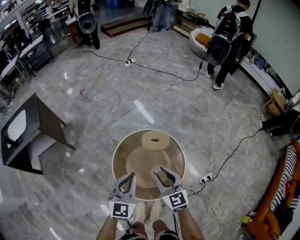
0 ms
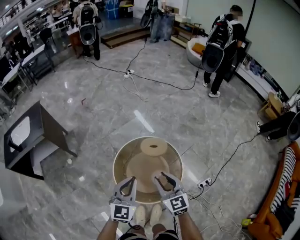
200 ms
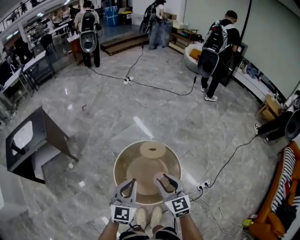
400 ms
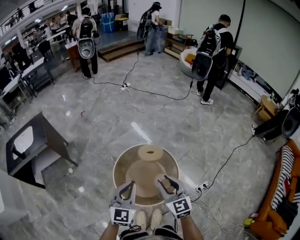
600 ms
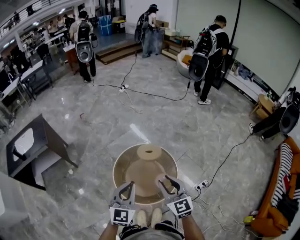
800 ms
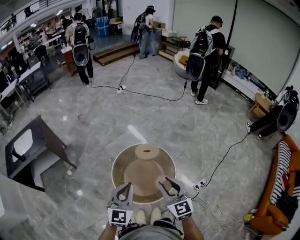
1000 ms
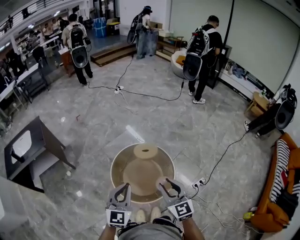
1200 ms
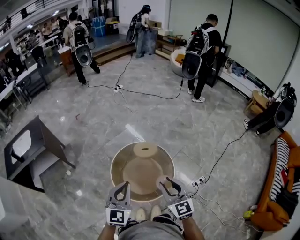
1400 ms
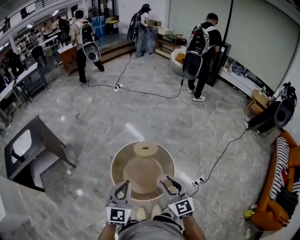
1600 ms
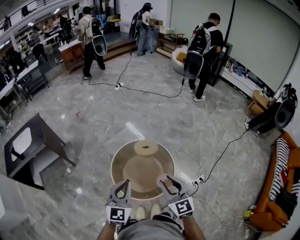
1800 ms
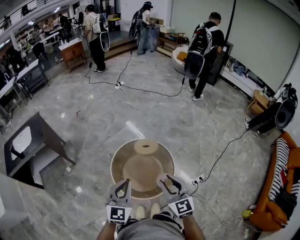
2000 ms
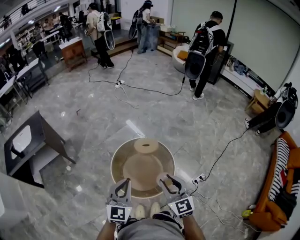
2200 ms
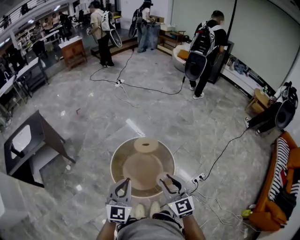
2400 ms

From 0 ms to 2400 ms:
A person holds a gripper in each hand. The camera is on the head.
From 0 ms to 1200 ms: Both grippers move backward and upward, roughly 20 cm.
From 1200 ms to 2400 ms: Both grippers stay about where they are.

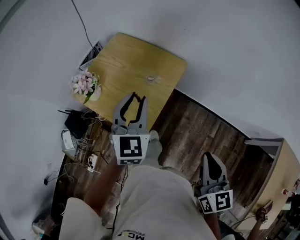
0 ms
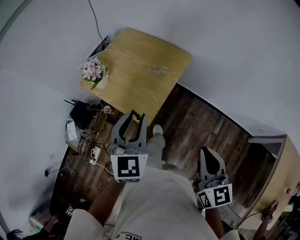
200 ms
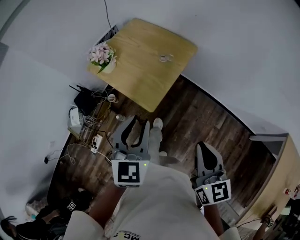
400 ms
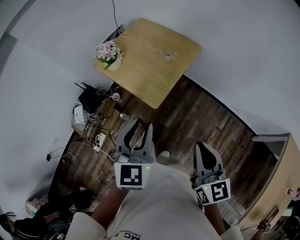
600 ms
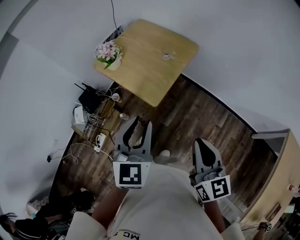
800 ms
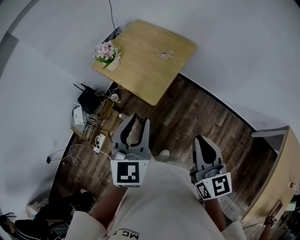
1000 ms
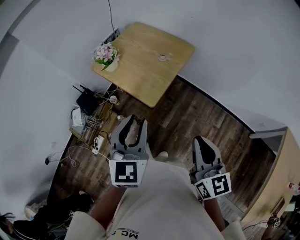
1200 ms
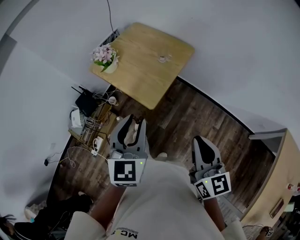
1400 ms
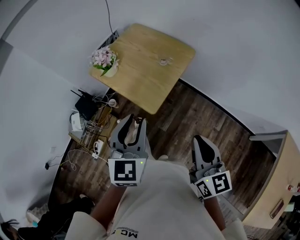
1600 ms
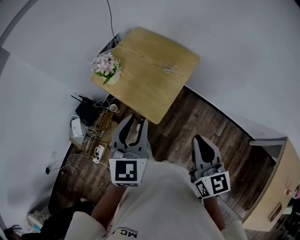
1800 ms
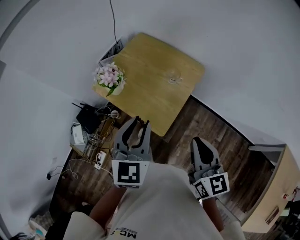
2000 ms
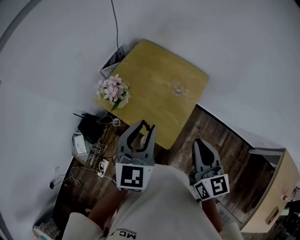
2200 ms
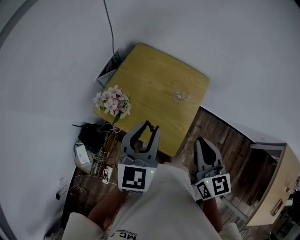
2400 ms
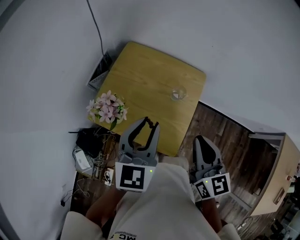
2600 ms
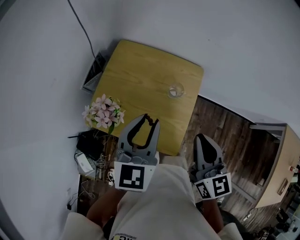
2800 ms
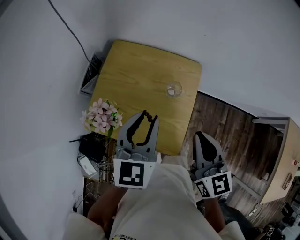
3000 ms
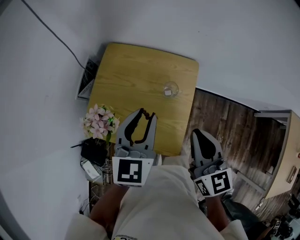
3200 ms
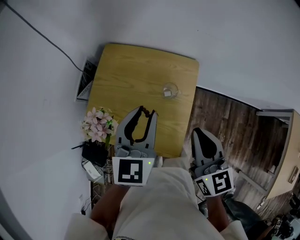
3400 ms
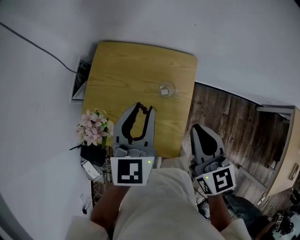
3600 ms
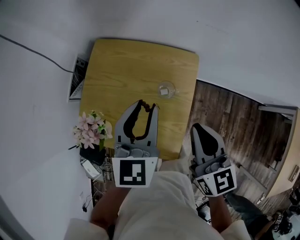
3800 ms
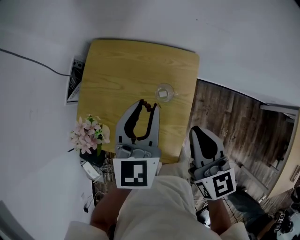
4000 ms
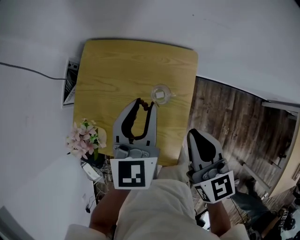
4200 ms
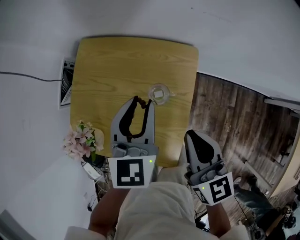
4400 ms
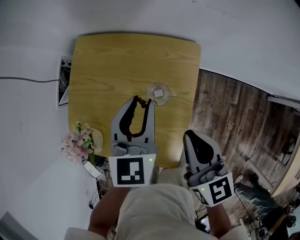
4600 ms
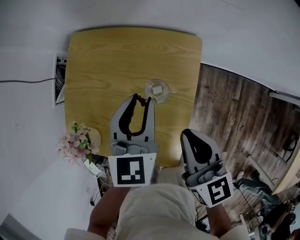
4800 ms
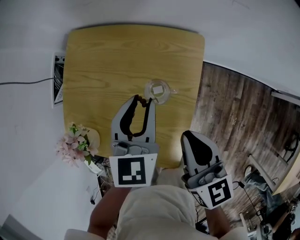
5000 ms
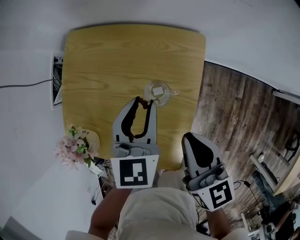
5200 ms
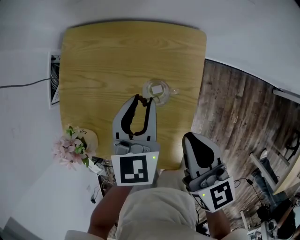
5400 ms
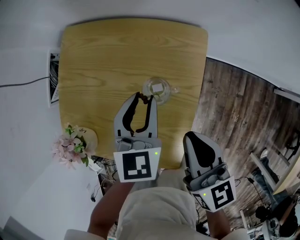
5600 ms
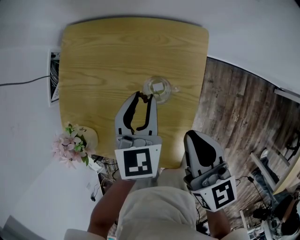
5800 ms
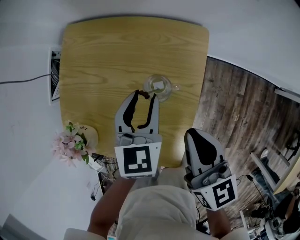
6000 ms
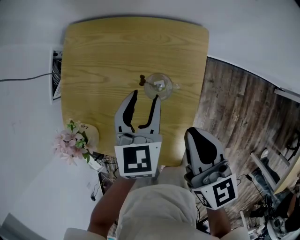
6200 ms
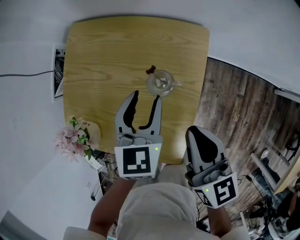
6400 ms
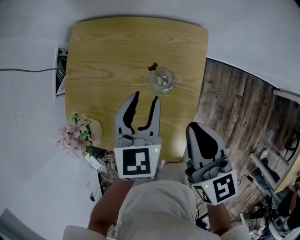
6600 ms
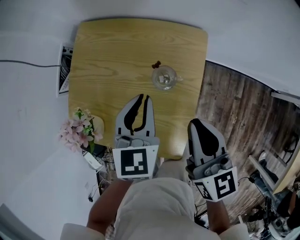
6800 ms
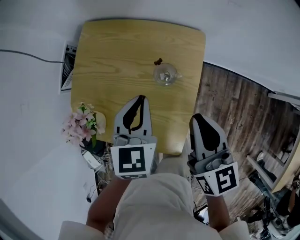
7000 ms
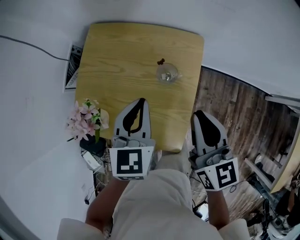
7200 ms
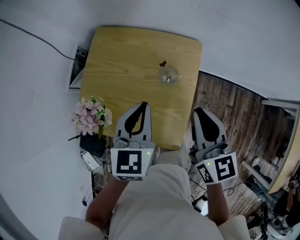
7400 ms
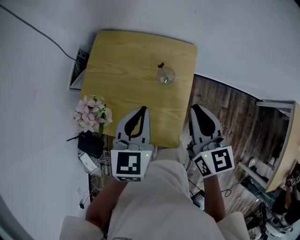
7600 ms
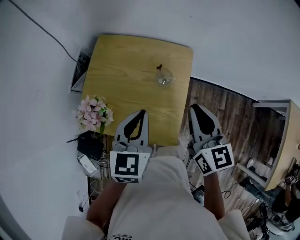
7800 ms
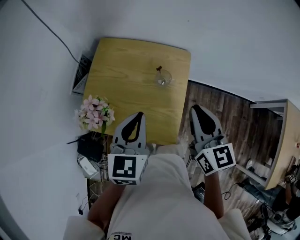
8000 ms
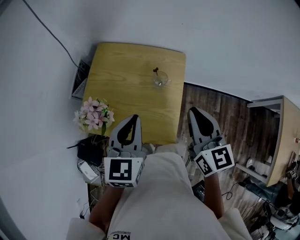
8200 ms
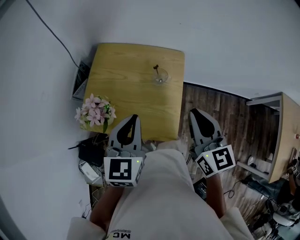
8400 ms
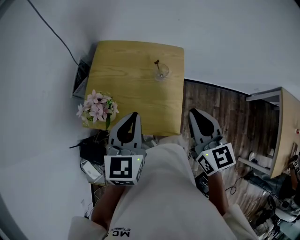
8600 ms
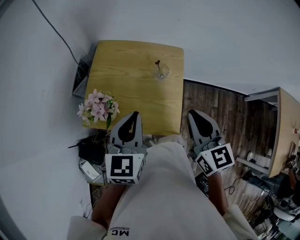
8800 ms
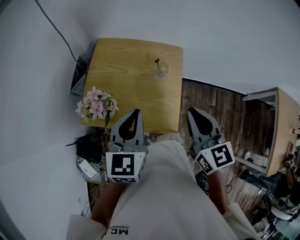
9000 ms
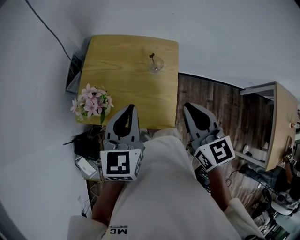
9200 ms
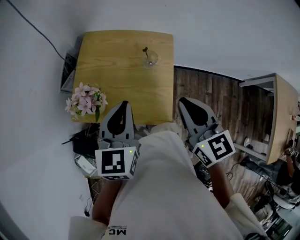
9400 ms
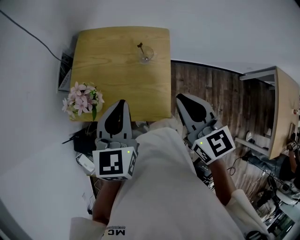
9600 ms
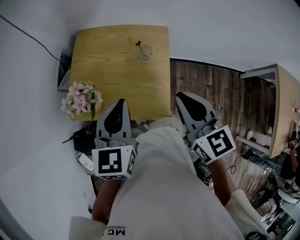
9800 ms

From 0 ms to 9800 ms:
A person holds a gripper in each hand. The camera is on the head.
From 0 ms to 1400 ms: The right gripper moves backward and to the left, roughly 15 cm, while the left gripper heads backward, covering roughly 25 cm.
From 1400 ms to 2800 ms: The left gripper moves forward, roughly 35 cm, and swivels roughly 20 degrees. Meanwhile the right gripper is displaced forward and to the left by about 40 cm.
From 2800 ms to 4200 ms: The right gripper shifts about 15 cm downward, forward and to the right. The left gripper travels forward, downward and to the right by approximately 20 cm.
From 4200 ms to 5600 ms: The left gripper moves downward, about 15 cm. The right gripper goes about 10 cm downward.
From 5600 ms to 7000 ms: The left gripper moves upward and backward, approximately 10 cm, and closes its fingers; the right gripper travels upward by approximately 5 cm.
From 7000 ms to 8400 ms: The grippers both shift upward and backward by about 20 cm.
From 8400 ms to 9800 ms: The grippers stay close to where they were, moving slightly.

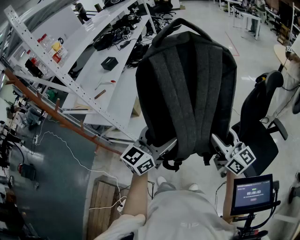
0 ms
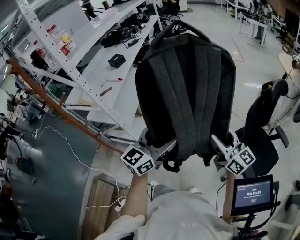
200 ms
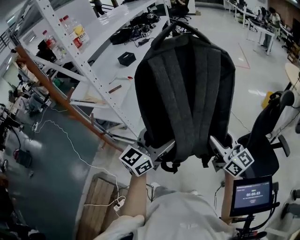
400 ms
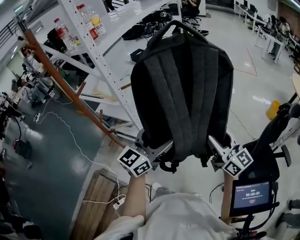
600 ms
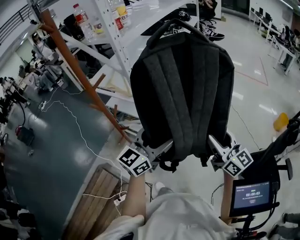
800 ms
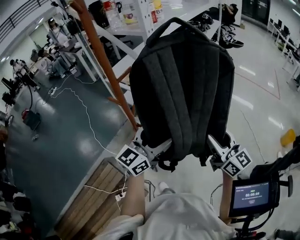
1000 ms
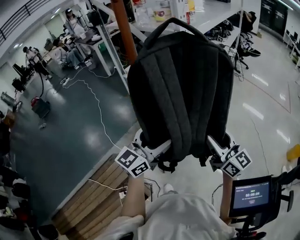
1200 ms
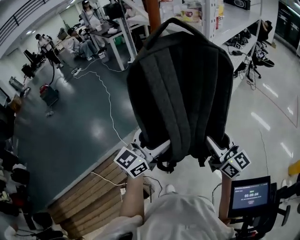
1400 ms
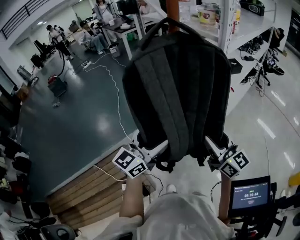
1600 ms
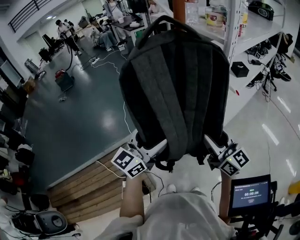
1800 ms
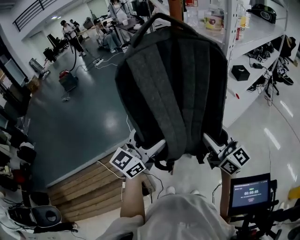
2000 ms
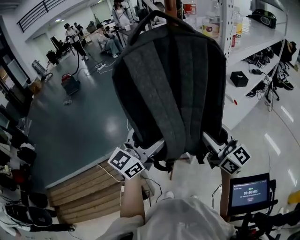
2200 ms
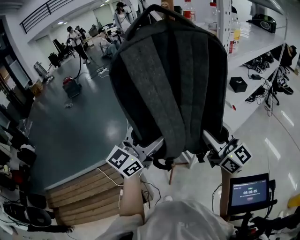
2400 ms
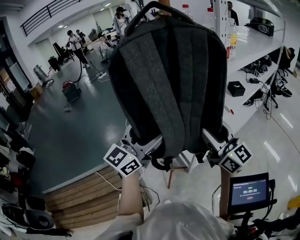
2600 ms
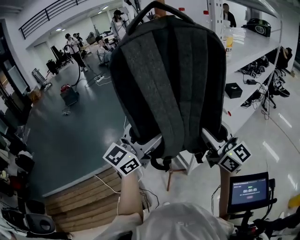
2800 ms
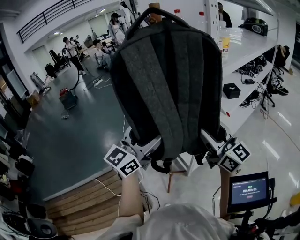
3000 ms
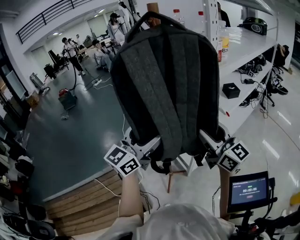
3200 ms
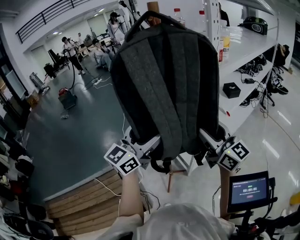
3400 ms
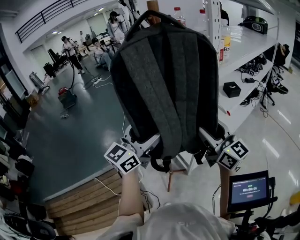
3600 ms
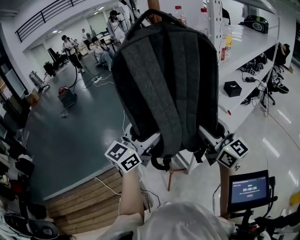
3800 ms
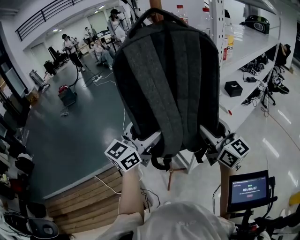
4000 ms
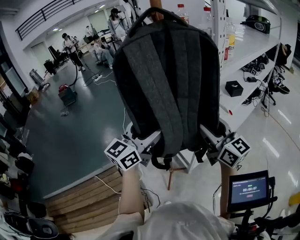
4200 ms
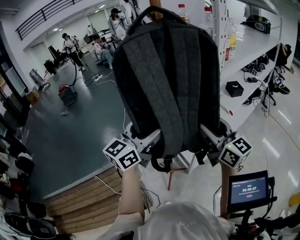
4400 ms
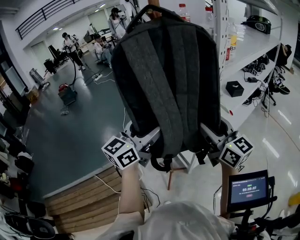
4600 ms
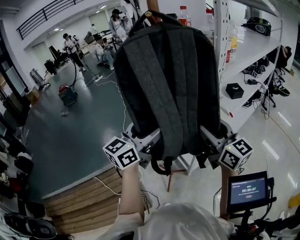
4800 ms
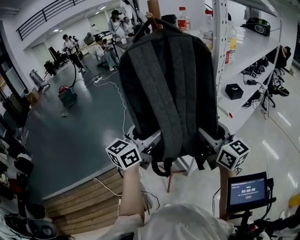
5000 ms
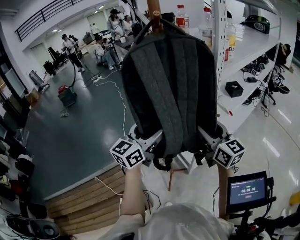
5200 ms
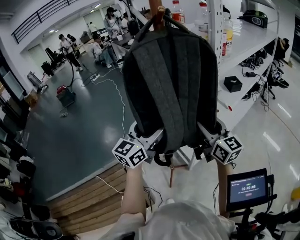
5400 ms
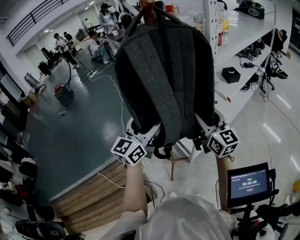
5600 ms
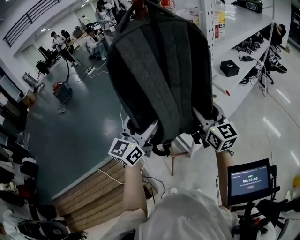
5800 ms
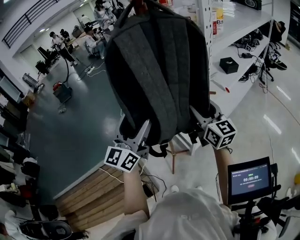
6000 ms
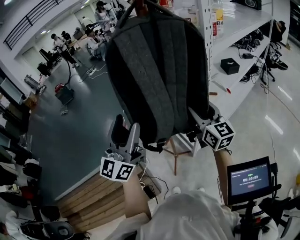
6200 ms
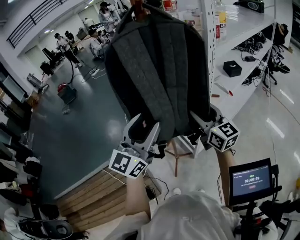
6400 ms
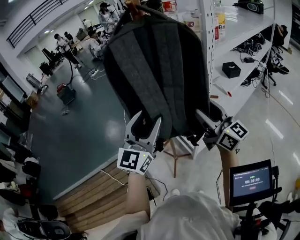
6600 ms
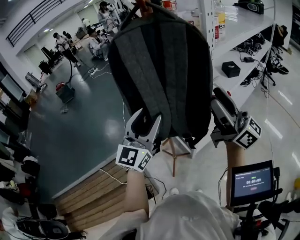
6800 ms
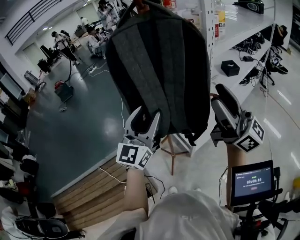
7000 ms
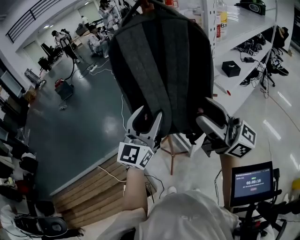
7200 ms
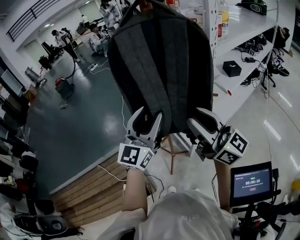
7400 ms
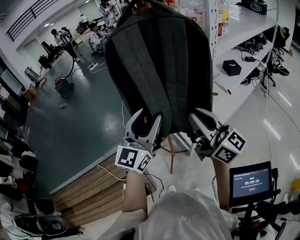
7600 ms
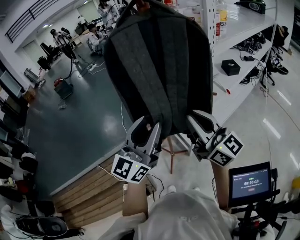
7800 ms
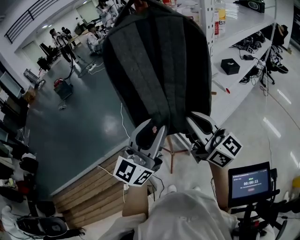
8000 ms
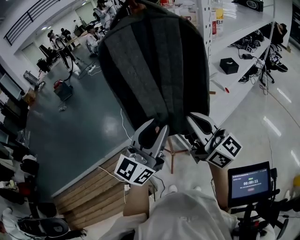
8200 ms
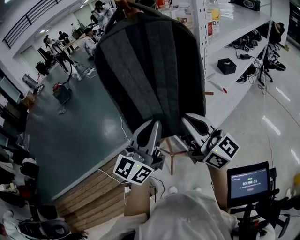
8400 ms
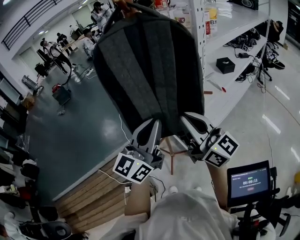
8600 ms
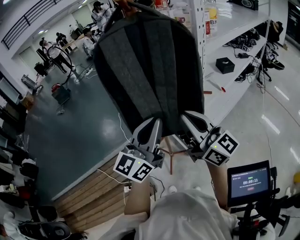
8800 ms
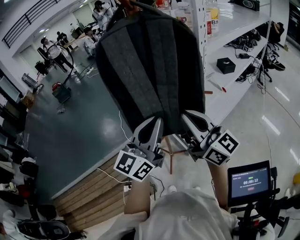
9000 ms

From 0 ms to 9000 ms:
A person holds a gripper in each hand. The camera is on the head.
From 0 ms to 1600 ms: The pair of grippers is taken some 60 cm. The right gripper turns by approximately 40 degrees. The left gripper rotates approximately 40 degrees.
From 1600 ms to 3000 ms: The left gripper moves upward, some 10 cm, while the right gripper shifts approximately 10 cm upward and forward.
From 3000 ms to 4400 ms: The grippers make only small movements.
From 4400 ms to 6000 ms: The right gripper travels downward by about 5 cm.
From 6000 ms to 7600 ms: The right gripper heads backward and upward, covering some 10 cm, rotates some 30 degrees, and closes its fingers; the left gripper closes.
From 7600 ms to 9000 ms: The left gripper closes its fingers.

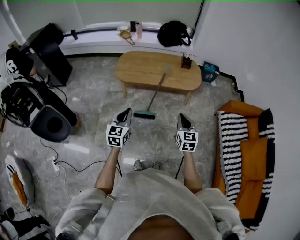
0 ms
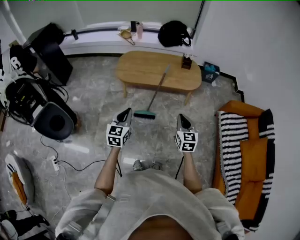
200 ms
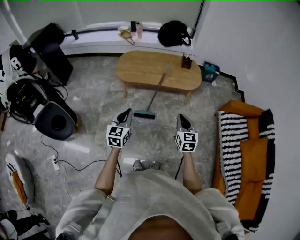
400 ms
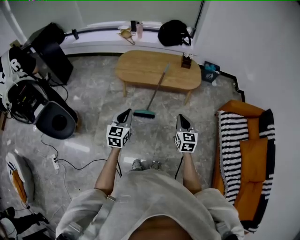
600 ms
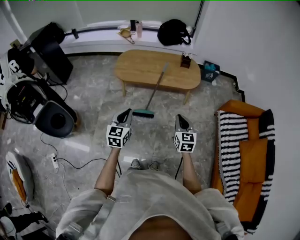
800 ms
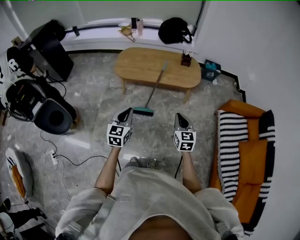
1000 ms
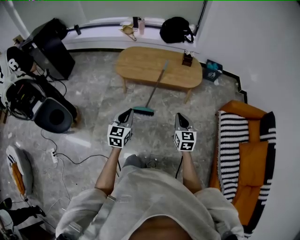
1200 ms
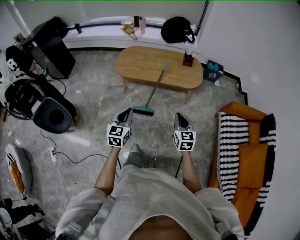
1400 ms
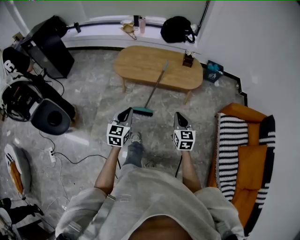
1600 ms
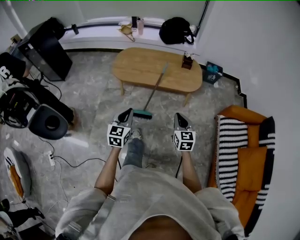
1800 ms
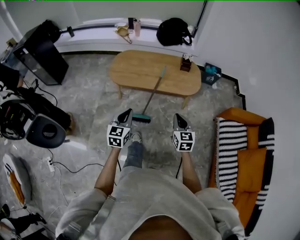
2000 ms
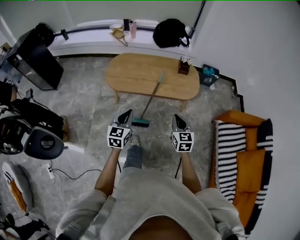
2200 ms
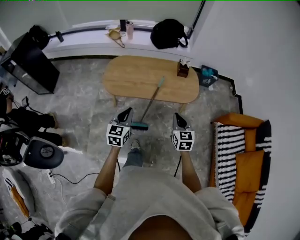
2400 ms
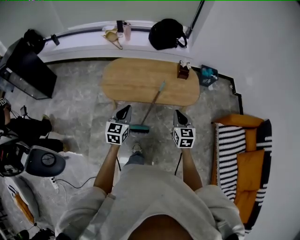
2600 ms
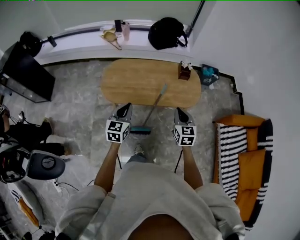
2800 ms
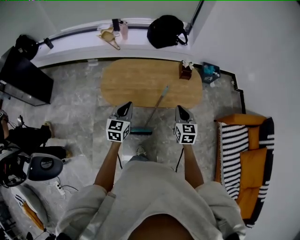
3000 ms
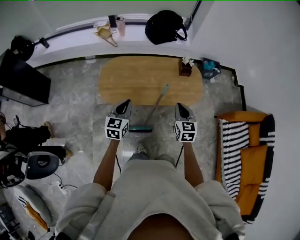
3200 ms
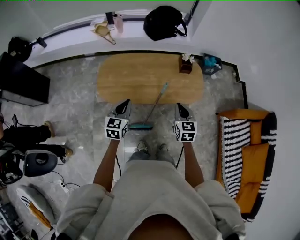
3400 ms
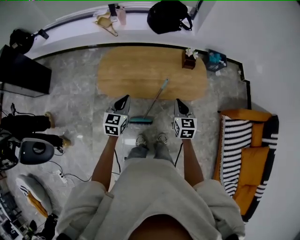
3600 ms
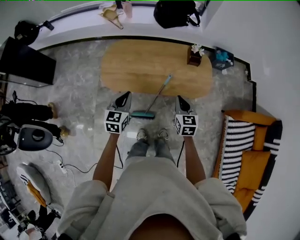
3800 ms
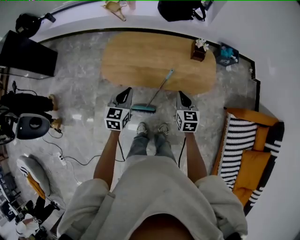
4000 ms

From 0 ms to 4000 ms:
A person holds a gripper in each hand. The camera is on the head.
From 0 ms to 1400 ms: The right gripper shifts by roughly 5 cm. Meanwhile the left gripper travels to the right by about 5 cm.
From 1400 ms to 2600 ms: Both grippers travel together forward, approximately 30 cm.
From 2600 ms to 4000 ms: Both grippers move forward and downward, some 15 cm.
